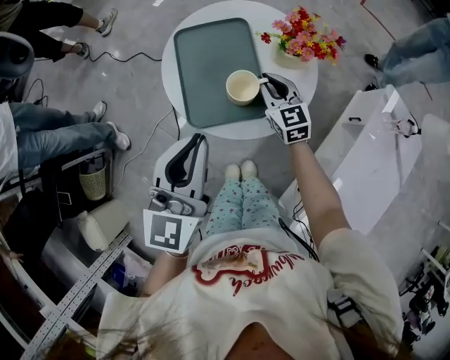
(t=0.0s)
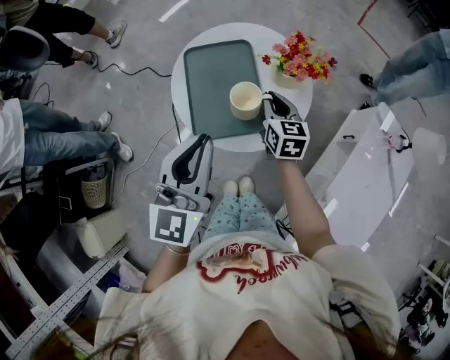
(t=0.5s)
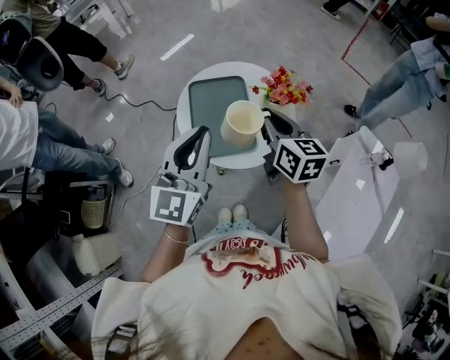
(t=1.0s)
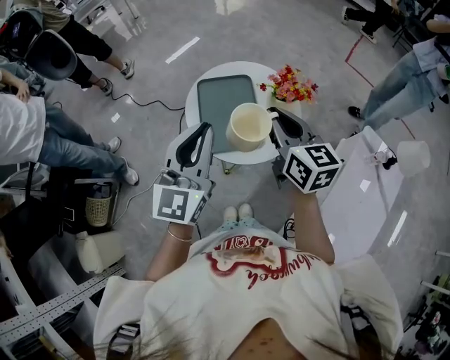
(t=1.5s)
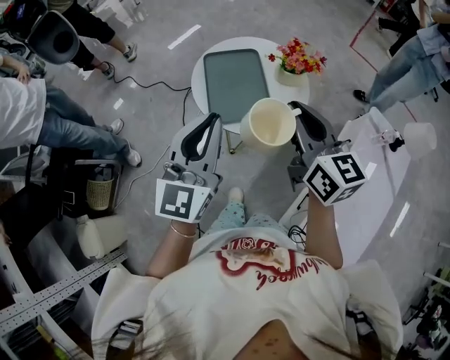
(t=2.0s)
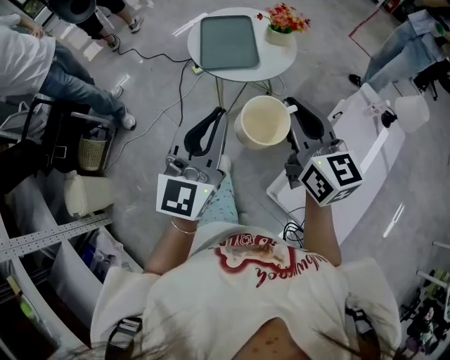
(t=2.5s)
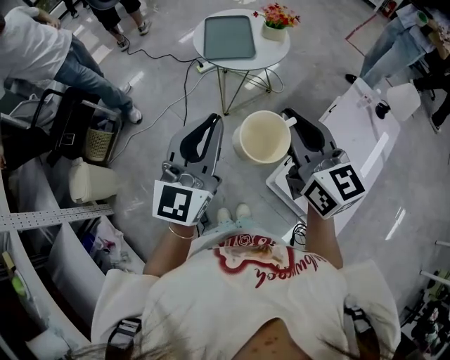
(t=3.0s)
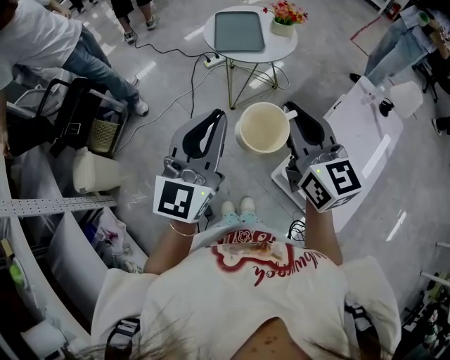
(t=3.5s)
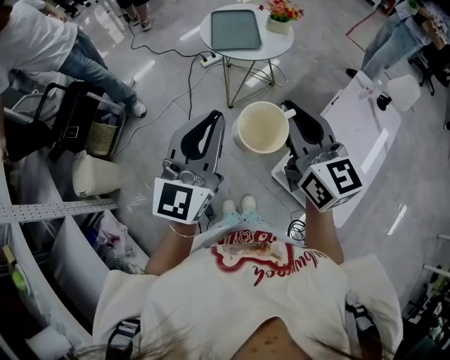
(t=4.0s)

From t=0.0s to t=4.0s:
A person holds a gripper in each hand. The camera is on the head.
From t=0.0s to t=2.0s: The right gripper goes approximately 35 cm upward and backward, and swivels approximately 20 degrees. Meanwhile the left gripper goes approximately 10 cm upward and backward.
From t=2.0s to t=4.0s: Both grippers travel together backward, about 40 cm.

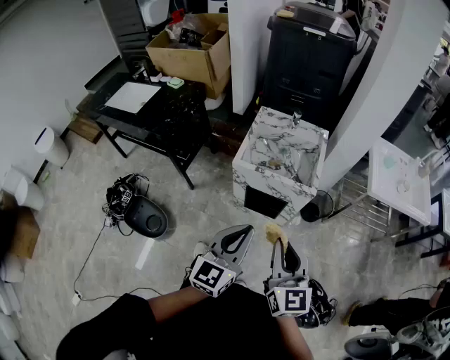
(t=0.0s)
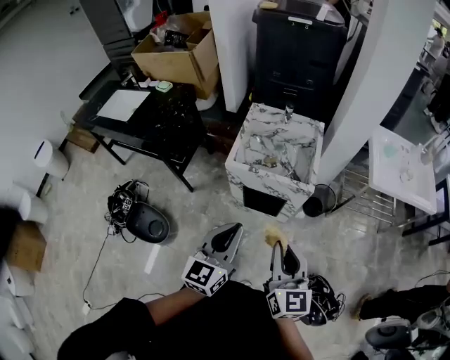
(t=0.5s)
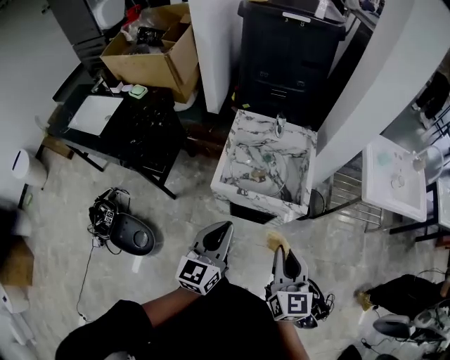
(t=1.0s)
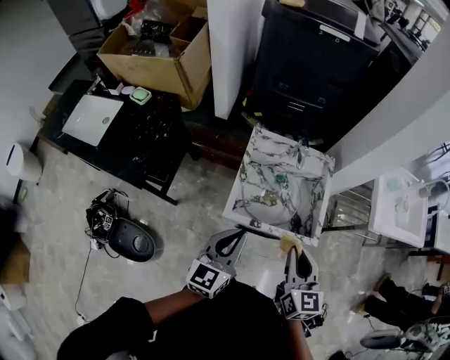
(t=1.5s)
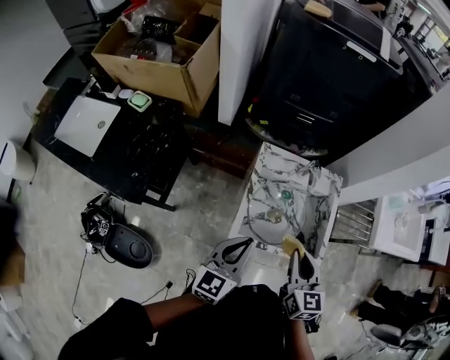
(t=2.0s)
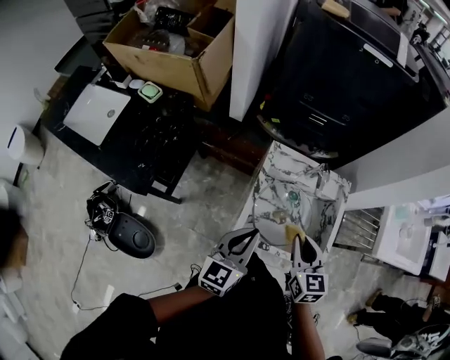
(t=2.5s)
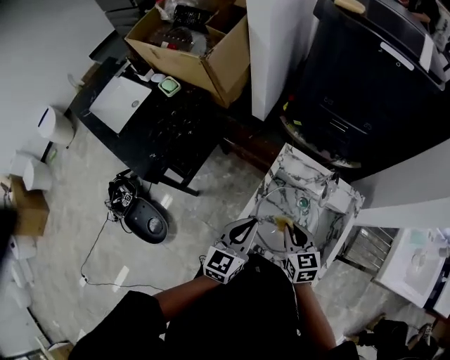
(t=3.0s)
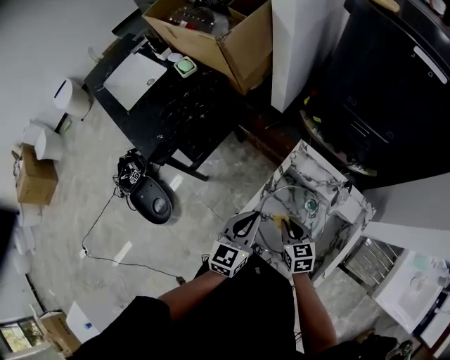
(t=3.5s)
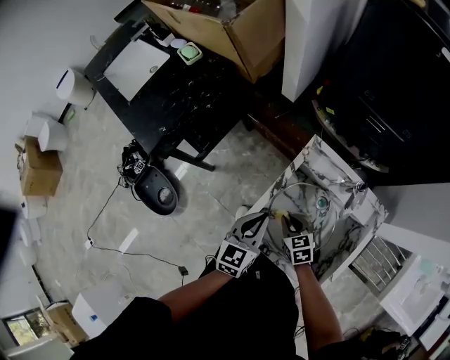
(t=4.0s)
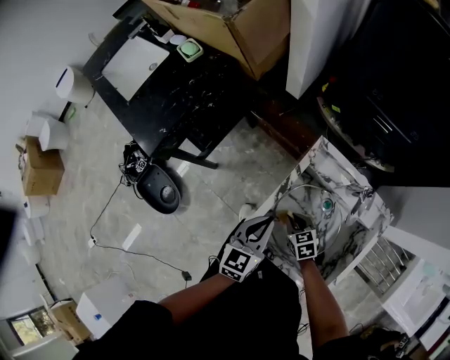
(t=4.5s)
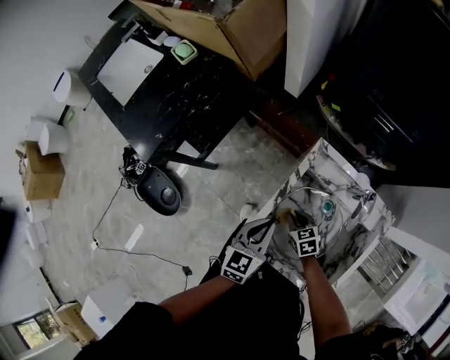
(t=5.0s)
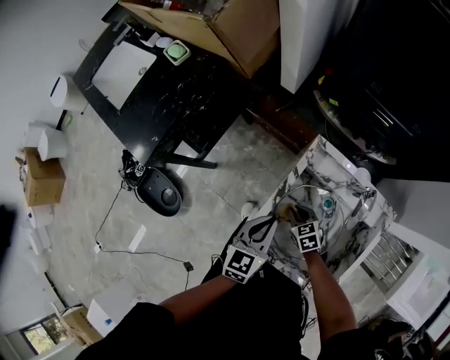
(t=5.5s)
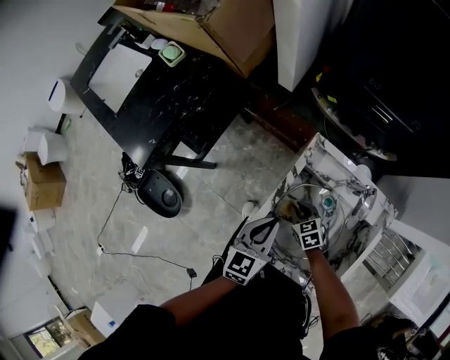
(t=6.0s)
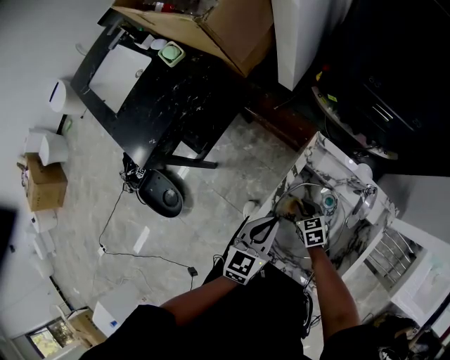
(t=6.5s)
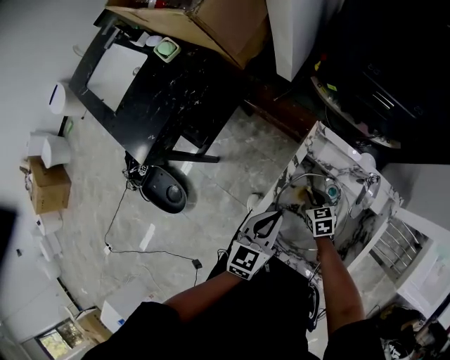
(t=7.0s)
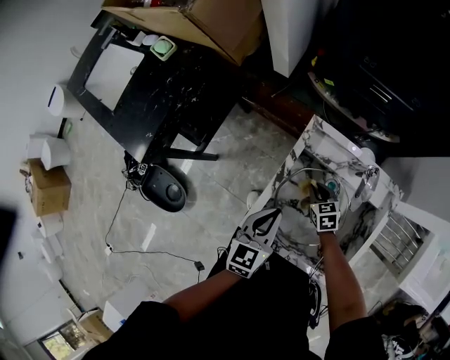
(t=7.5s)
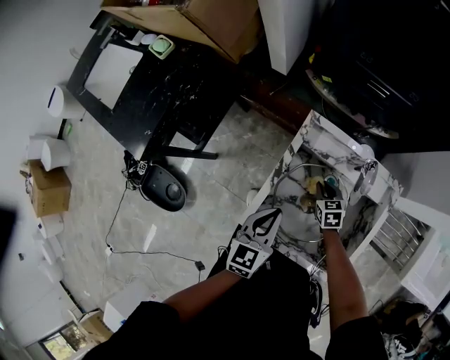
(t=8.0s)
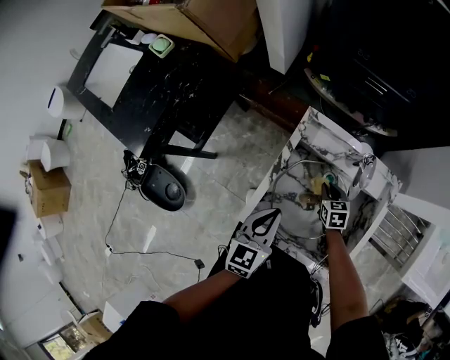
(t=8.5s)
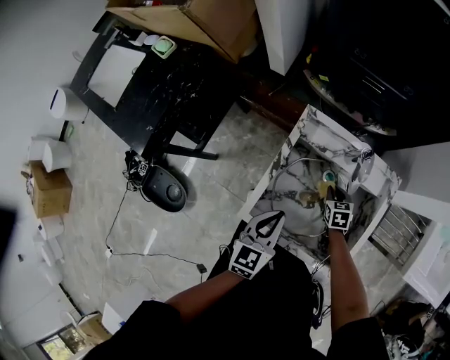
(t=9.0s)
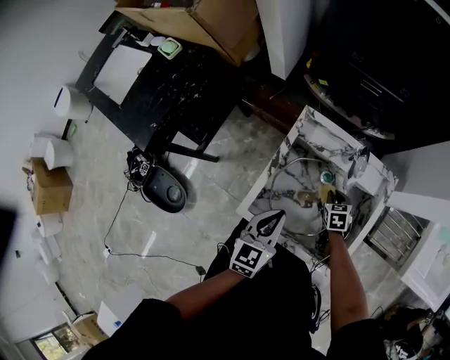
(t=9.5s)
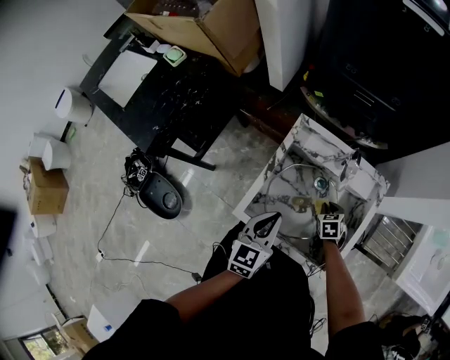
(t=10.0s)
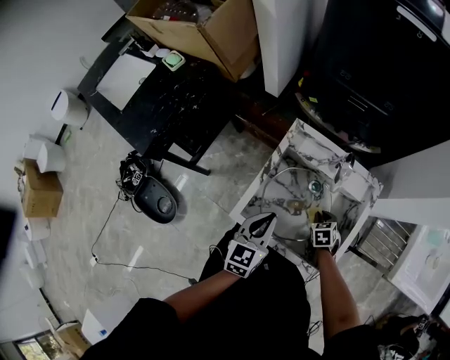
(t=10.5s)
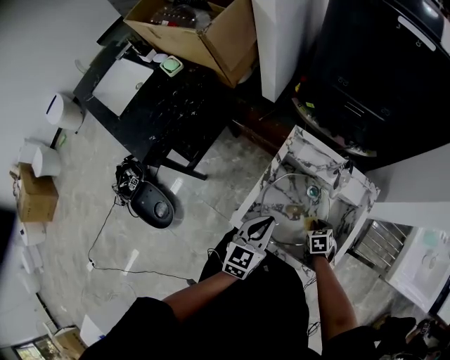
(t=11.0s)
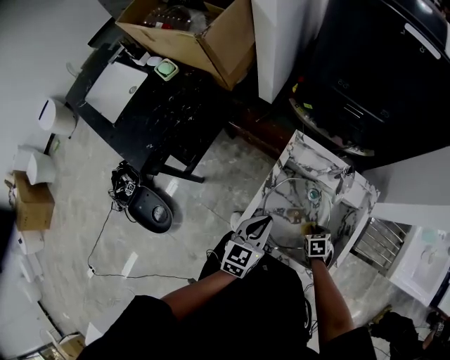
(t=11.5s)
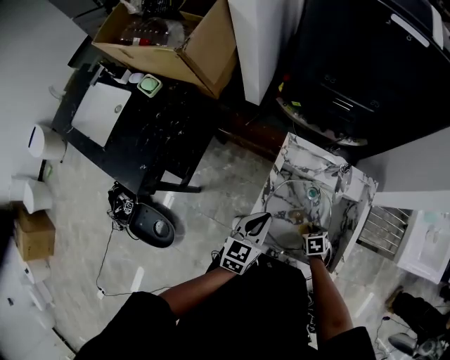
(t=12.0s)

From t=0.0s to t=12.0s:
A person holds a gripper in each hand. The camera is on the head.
From t=0.0s to t=2.0s: The right gripper is displaced forward by approximately 40 cm, and changes its angle by about 20 degrees. Meanwhile the left gripper heads forward and to the left, covering some 40 cm.
From t=2.0s to t=4.0s: The left gripper goes some 15 cm downward, and turns by some 30 degrees; the right gripper goes about 30 cm downward, and changes its angle by about 50 degrees.
From t=4.0s to t=6.0s: The right gripper goes about 10 cm downward and forward.
From t=6.0s to t=8.0s: The right gripper is displaced to the right by approximately 10 cm.
From t=8.0s to t=10.0s: The left gripper shifts by about 5 cm. Meanwhile the right gripper is displaced to the right and backward by some 10 cm.
From t=10.0s to t=12.0s: The right gripper shifts by some 10 cm, while the left gripper shifts by approximately 10 cm.

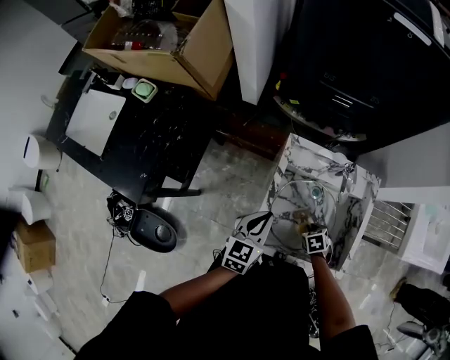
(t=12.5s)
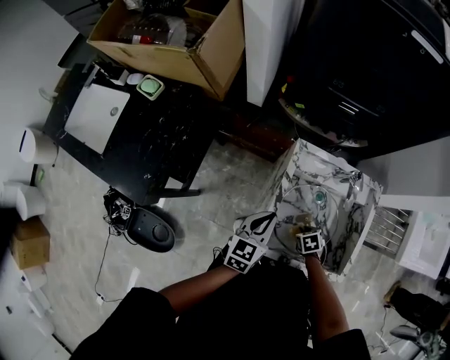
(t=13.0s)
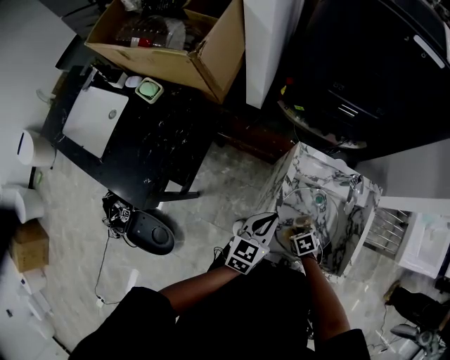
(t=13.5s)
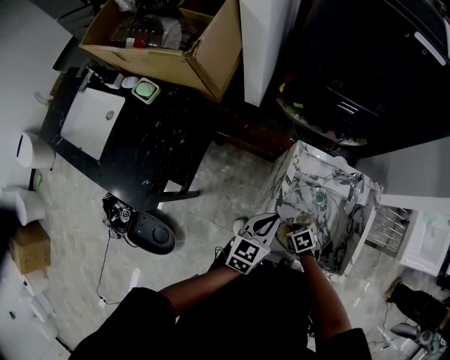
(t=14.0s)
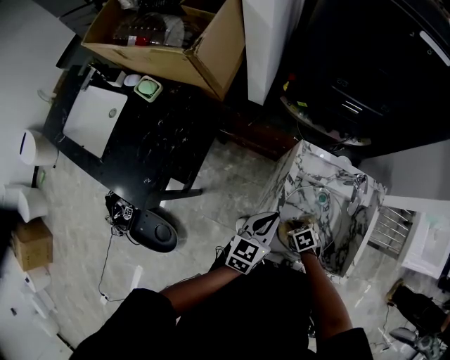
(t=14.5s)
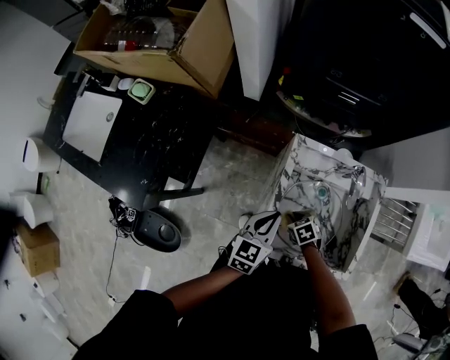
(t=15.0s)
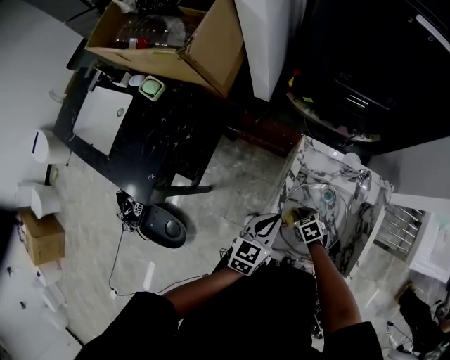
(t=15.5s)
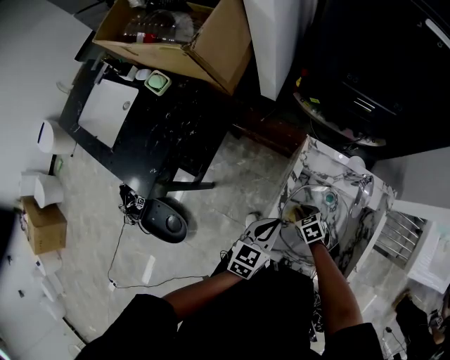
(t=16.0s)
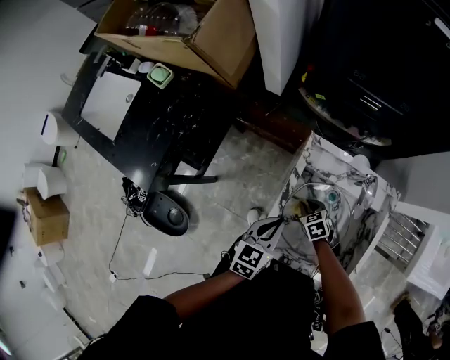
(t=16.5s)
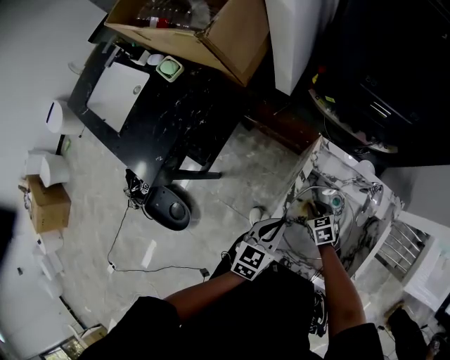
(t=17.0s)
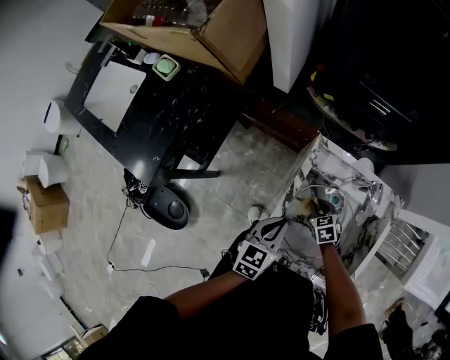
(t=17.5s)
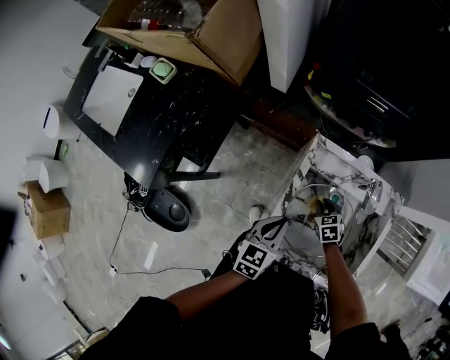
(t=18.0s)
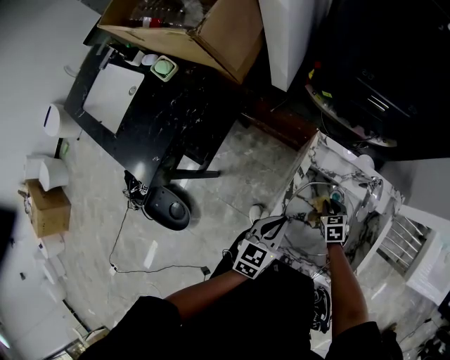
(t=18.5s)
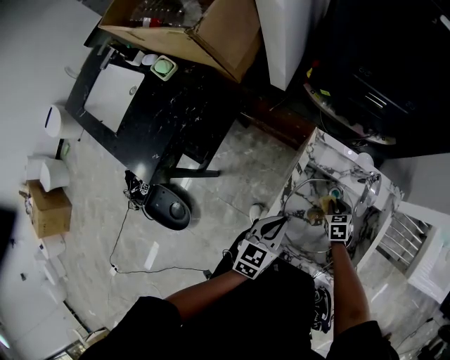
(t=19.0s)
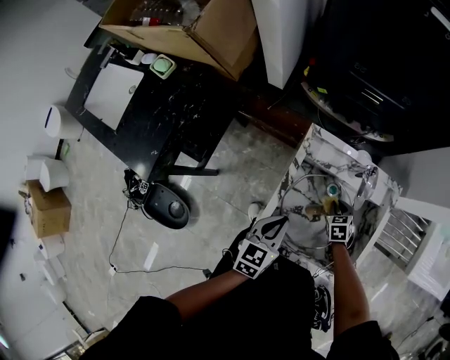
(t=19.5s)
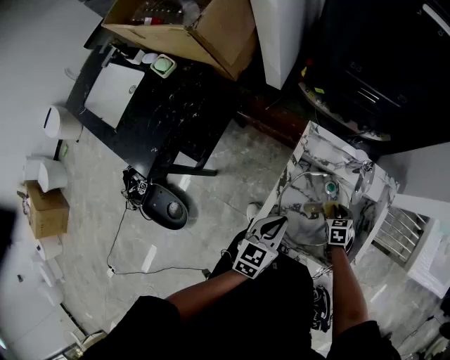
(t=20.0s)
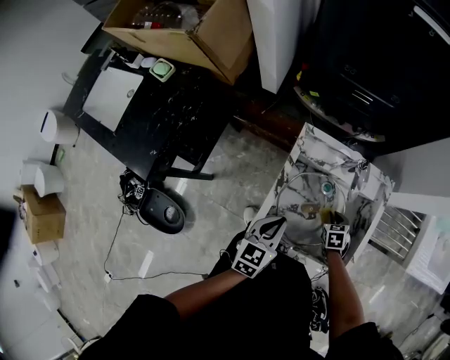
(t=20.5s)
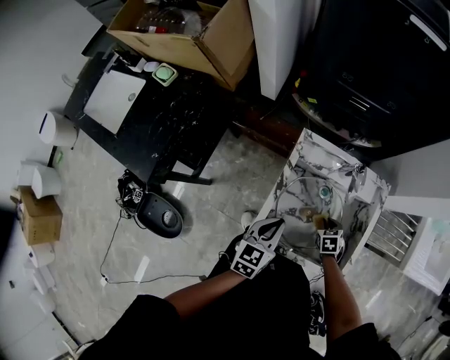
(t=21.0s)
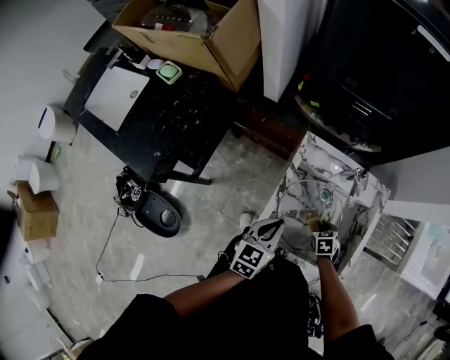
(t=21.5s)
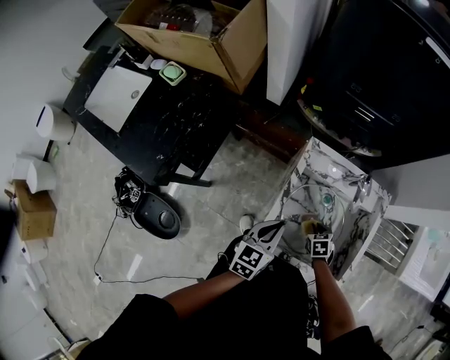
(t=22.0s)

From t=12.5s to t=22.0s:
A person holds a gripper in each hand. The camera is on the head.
From t=12.5s to t=14.5s: The right gripper moves about 15 cm.
From t=14.5s to t=16.5s: The right gripper shifts approximately 5 cm forward.
From t=16.5s to t=18.0s: The right gripper goes some 5 cm to the right.
From t=18.0s to t=20.0s: The left gripper changes place by roughly 5 cm. The right gripper goes some 10 cm to the right.
From t=20.0s to t=22.0s: The right gripper heads backward and to the left, covering about 10 cm.

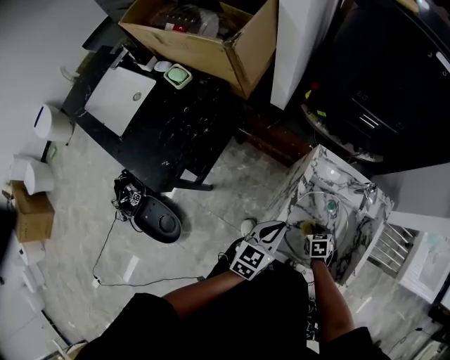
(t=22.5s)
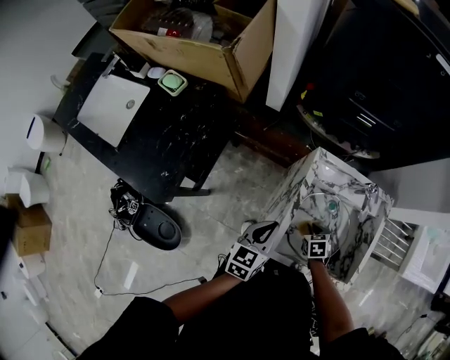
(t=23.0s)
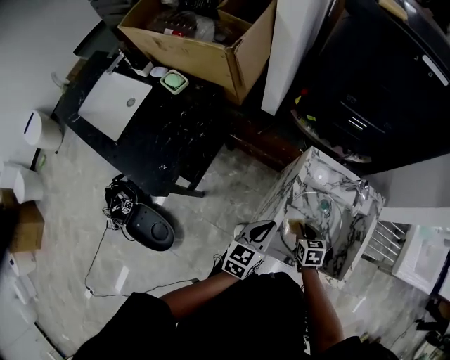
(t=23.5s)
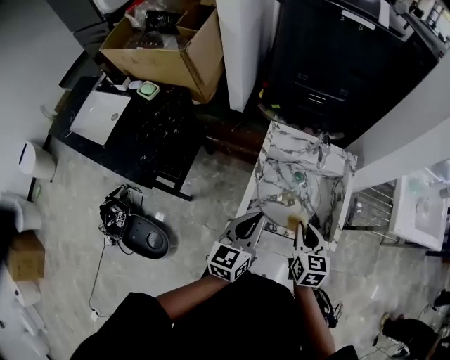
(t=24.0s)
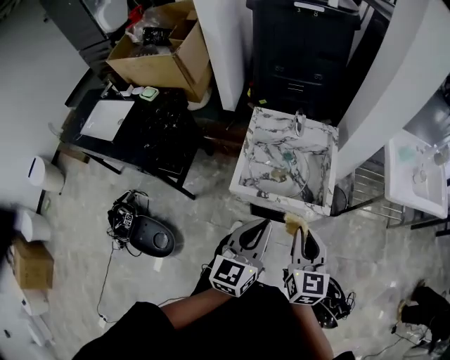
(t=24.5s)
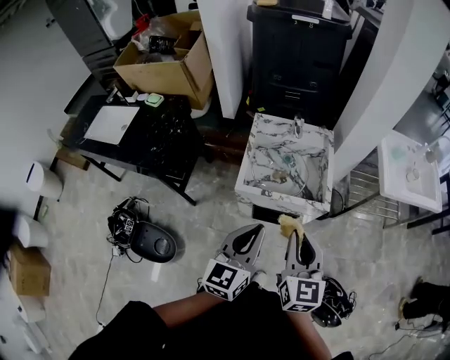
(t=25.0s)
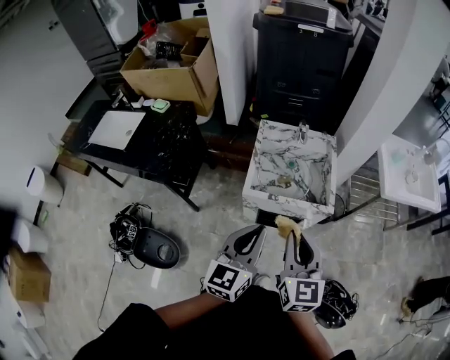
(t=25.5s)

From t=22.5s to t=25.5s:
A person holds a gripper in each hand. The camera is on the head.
From t=22.5s to t=24.0s: The right gripper is displaced upward and backward by some 30 cm, and angles its fingers upward, by roughly 40 degrees; the left gripper goes approximately 15 cm upward, backward and to the right.
From t=24.0s to t=25.5s: The two grippers go approximately 30 cm backward and upward. The right gripper changes its angle by about 20 degrees.
